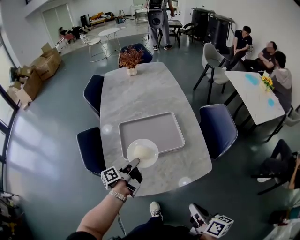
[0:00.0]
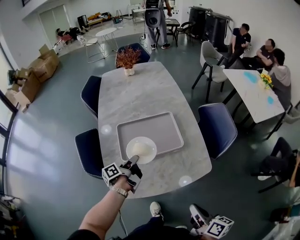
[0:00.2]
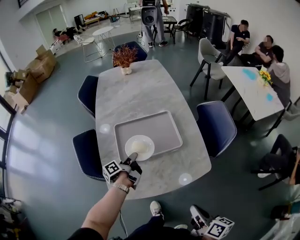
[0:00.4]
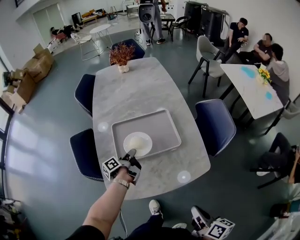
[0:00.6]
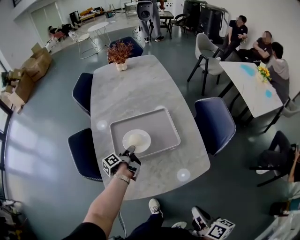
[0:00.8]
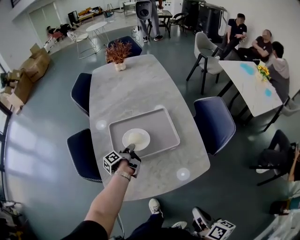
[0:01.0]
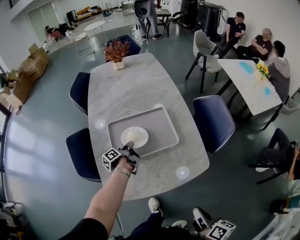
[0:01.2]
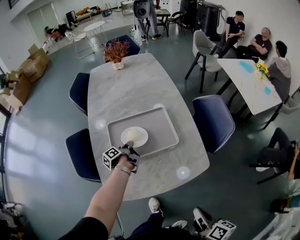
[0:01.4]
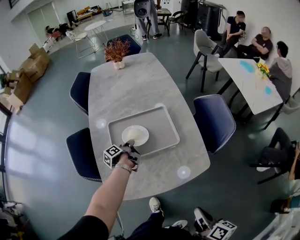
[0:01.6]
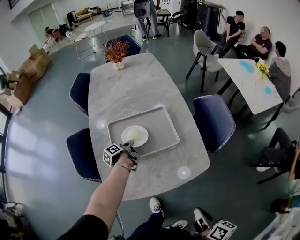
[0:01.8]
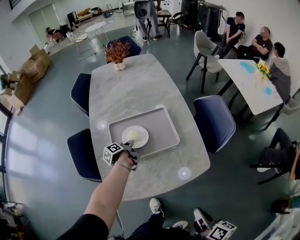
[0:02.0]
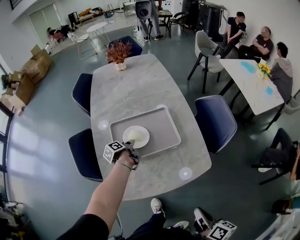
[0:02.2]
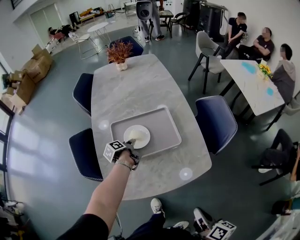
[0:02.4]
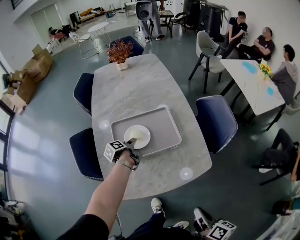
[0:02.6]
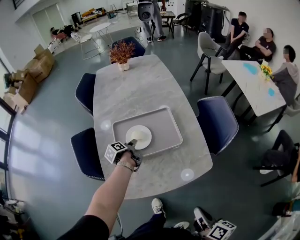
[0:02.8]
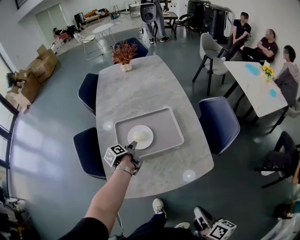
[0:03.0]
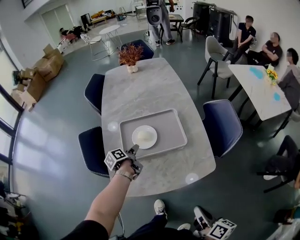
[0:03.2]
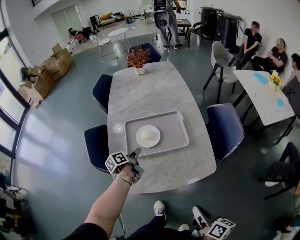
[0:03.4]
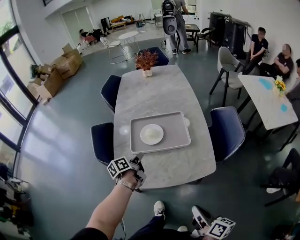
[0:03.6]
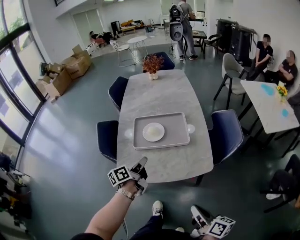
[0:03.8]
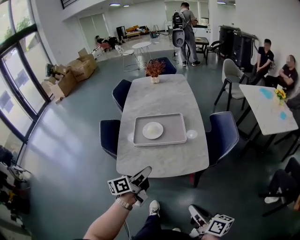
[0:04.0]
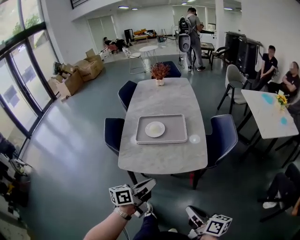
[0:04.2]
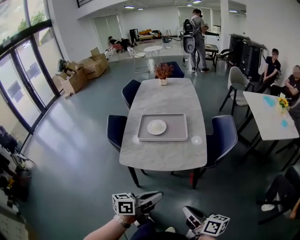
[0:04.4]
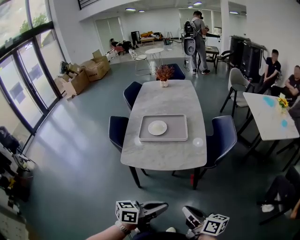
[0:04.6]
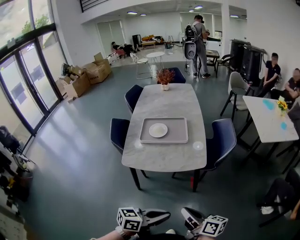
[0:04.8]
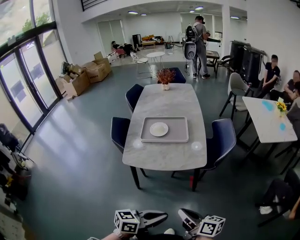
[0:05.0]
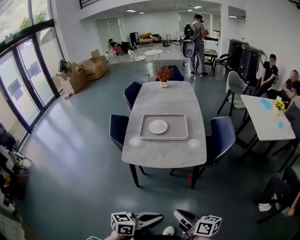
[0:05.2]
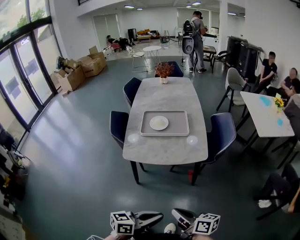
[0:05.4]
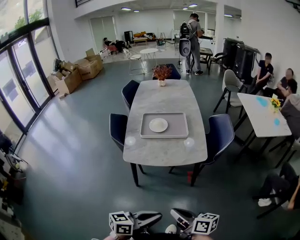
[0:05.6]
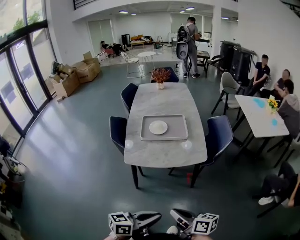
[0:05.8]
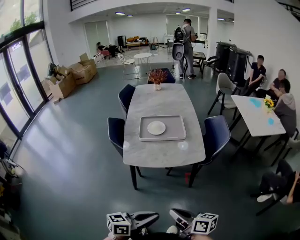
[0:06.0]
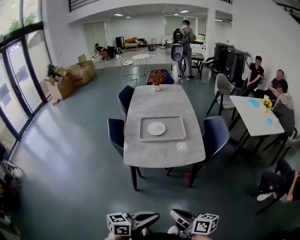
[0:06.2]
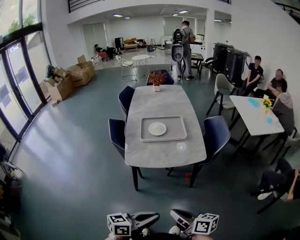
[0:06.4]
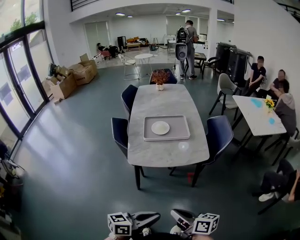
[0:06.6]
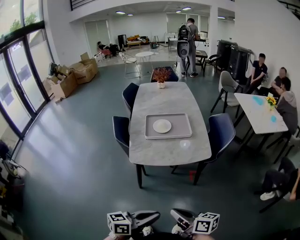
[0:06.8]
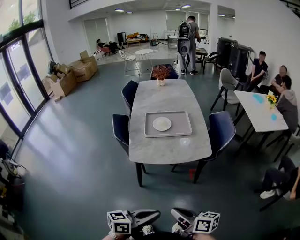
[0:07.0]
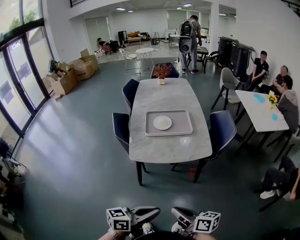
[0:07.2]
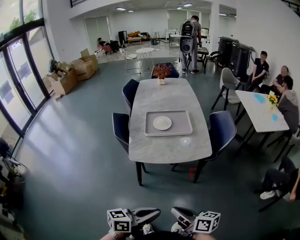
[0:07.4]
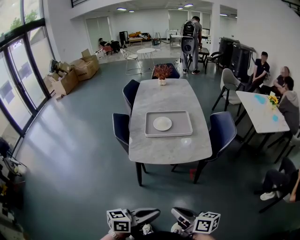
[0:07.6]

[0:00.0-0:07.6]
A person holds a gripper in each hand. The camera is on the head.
0:03.0 to 0:04.6: The right gripper changes place by some 20 cm, and changes its angle by about 40 degrees.
0:04.6 to 0:06.0: The right gripper shifts by roughly 15 cm.

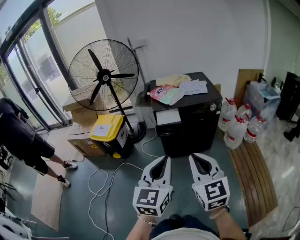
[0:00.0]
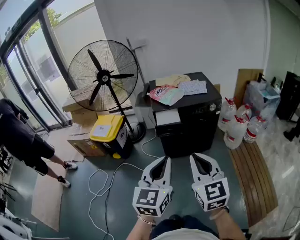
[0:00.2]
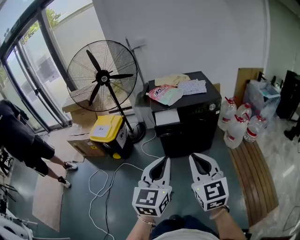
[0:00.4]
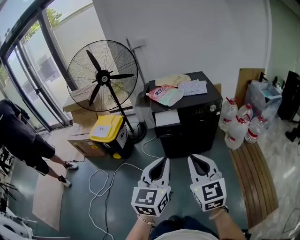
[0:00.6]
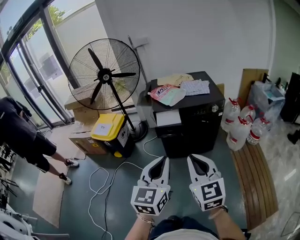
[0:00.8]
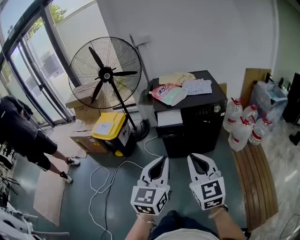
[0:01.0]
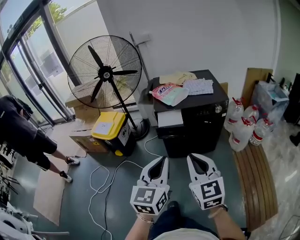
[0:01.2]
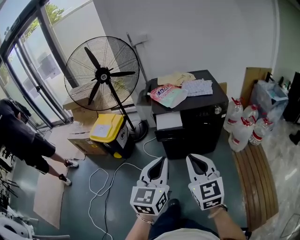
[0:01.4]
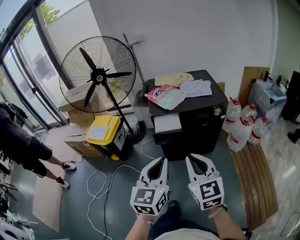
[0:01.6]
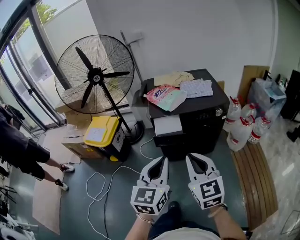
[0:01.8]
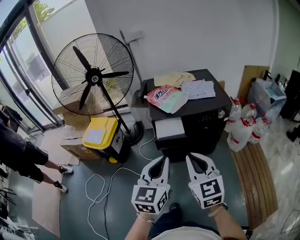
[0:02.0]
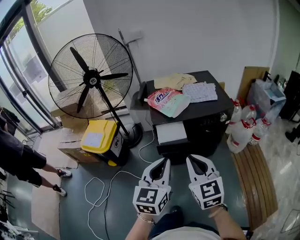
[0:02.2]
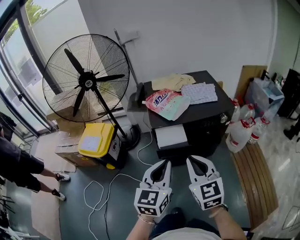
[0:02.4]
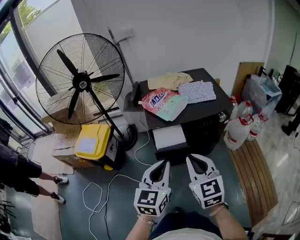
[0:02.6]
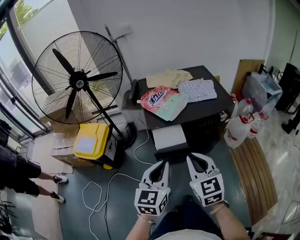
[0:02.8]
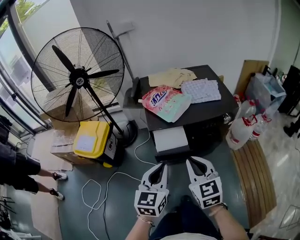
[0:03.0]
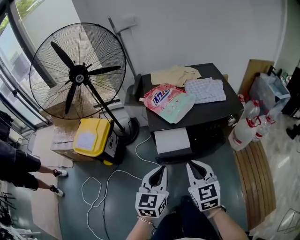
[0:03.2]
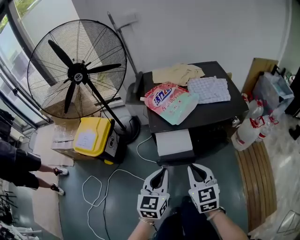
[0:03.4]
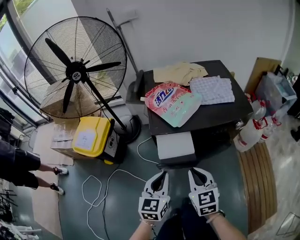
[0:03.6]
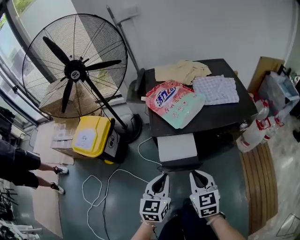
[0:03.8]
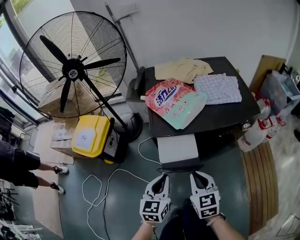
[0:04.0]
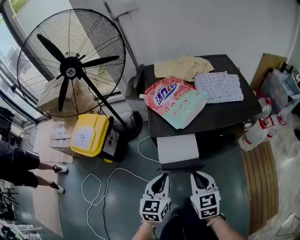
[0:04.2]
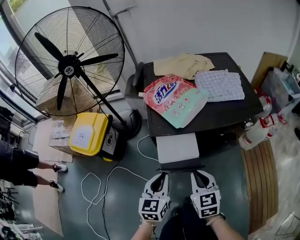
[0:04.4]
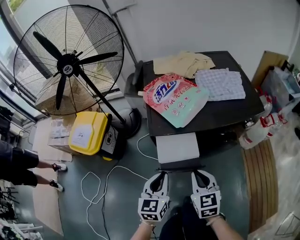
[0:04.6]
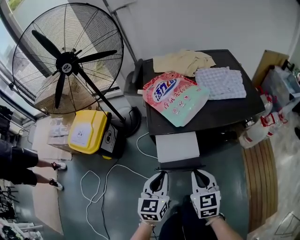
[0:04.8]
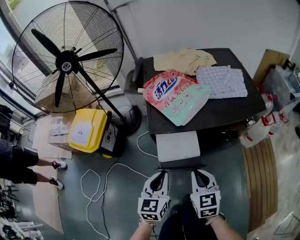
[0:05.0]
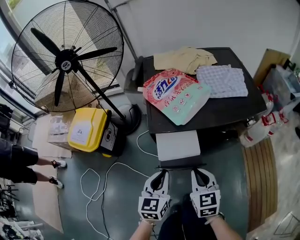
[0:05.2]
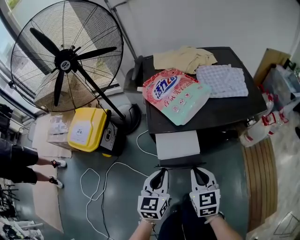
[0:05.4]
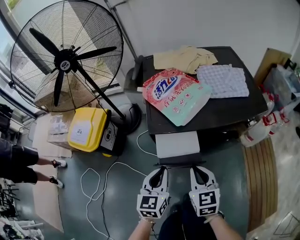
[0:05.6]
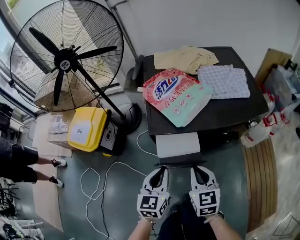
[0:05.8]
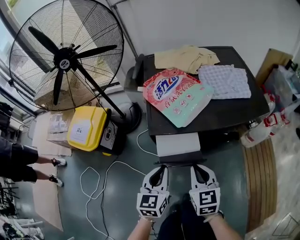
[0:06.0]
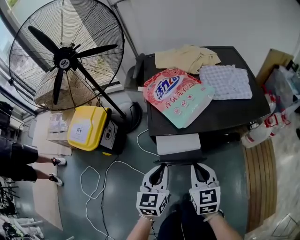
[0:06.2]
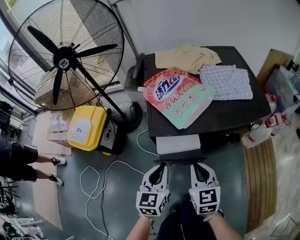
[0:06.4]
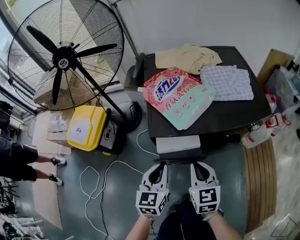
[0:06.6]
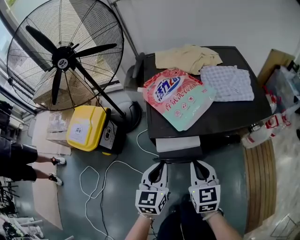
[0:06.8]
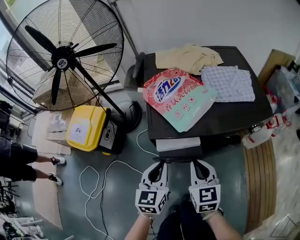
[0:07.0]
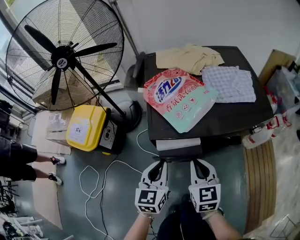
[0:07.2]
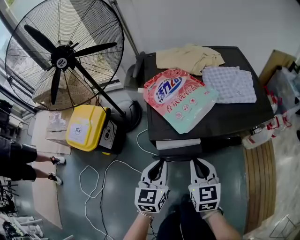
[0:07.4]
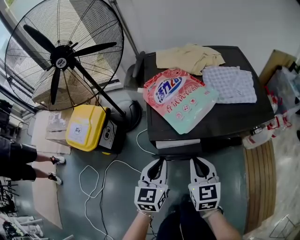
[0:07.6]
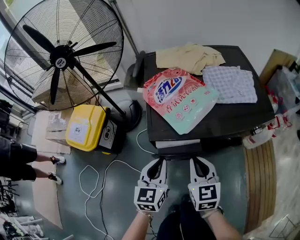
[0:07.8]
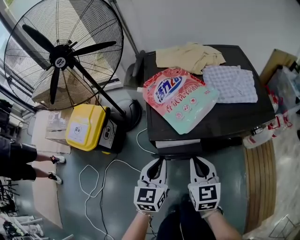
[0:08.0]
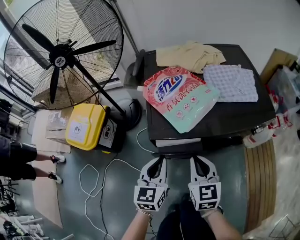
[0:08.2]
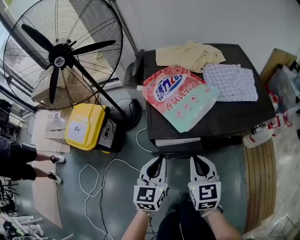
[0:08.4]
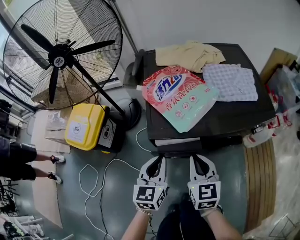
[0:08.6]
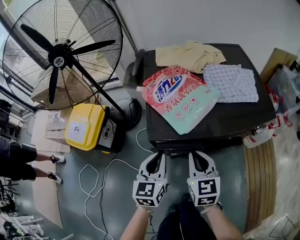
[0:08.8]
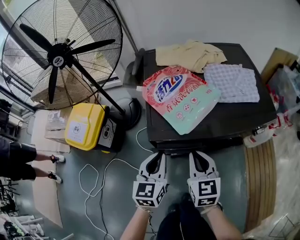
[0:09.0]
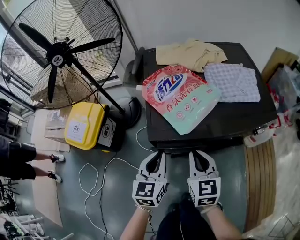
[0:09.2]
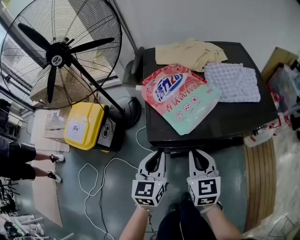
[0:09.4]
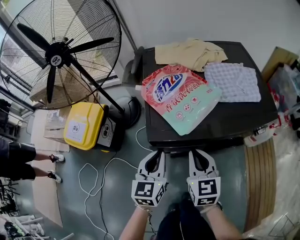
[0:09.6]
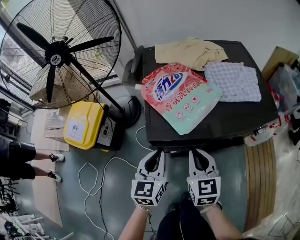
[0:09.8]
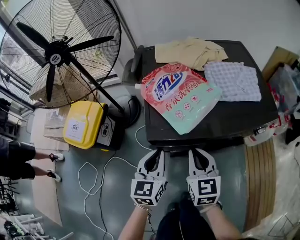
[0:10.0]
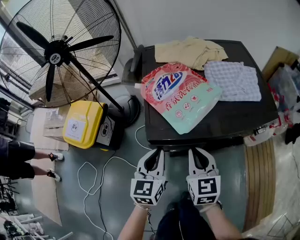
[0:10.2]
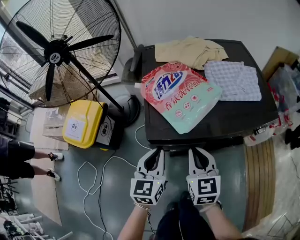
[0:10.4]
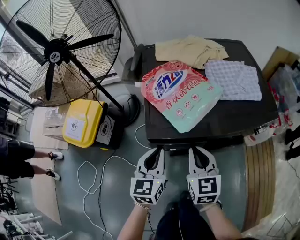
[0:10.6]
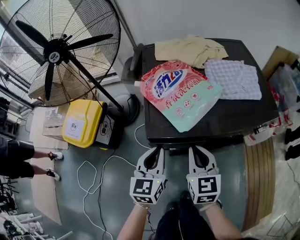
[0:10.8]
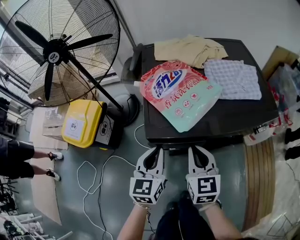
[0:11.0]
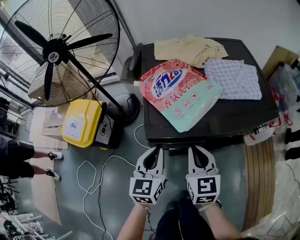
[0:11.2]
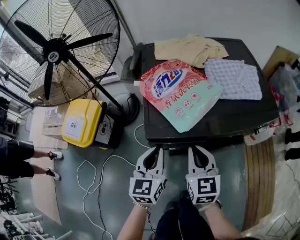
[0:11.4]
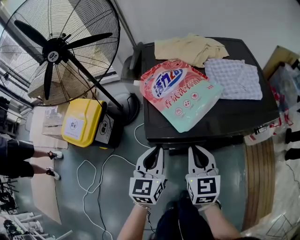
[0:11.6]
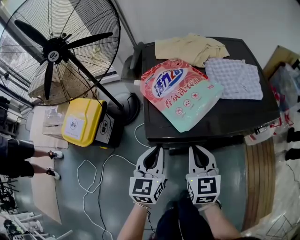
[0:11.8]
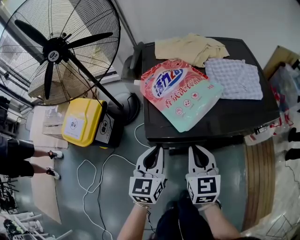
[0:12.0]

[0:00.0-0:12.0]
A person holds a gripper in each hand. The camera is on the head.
0:00.0 to 0:01.6: Both grippers move forward, some 10 cm.
0:01.6 to 0:03.0: The two grippers go roughly 20 cm forward and downward.
0:03.0 to 0:04.4: The right gripper heads downward, covering approximately 15 cm, while the left gripper goes some 20 cm downward and forward.
0:04.4 to 0:06.0: The grippers move only a little.
0:06.0 to 0:07.6: Both grippers travel together forward, roughly 5 cm.
0:07.6 to 0:09.0: The grippers stay close to where they were, moving slightly.
0:09.0 to 0:10.4: Both grippers stay put.
0:10.4 to 0:12.0: Neither gripper changes place.

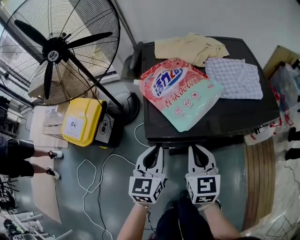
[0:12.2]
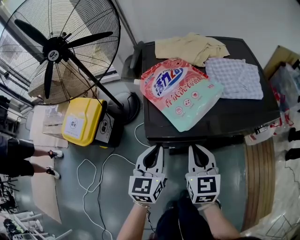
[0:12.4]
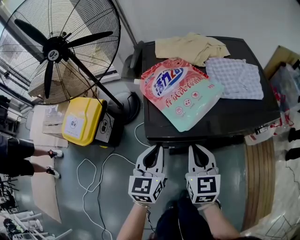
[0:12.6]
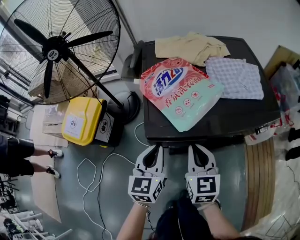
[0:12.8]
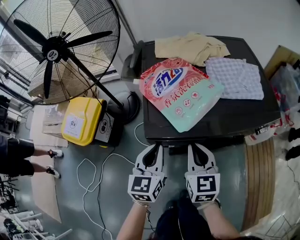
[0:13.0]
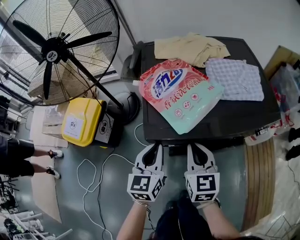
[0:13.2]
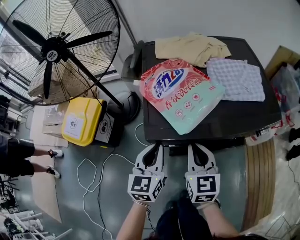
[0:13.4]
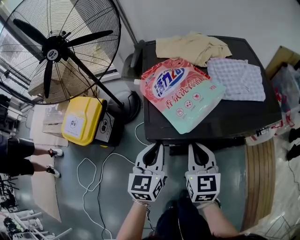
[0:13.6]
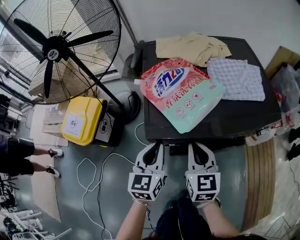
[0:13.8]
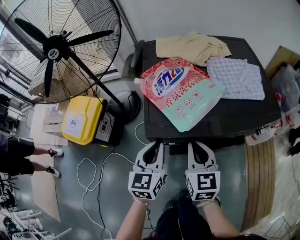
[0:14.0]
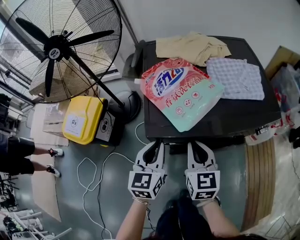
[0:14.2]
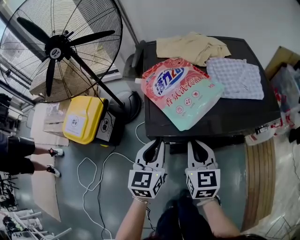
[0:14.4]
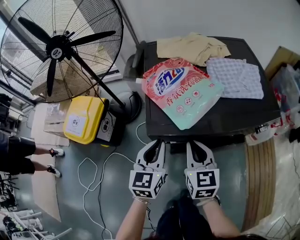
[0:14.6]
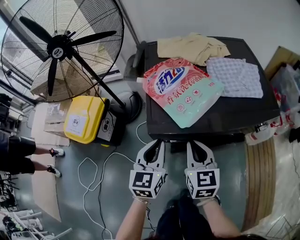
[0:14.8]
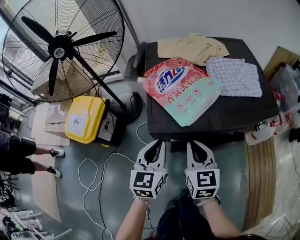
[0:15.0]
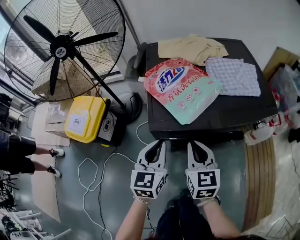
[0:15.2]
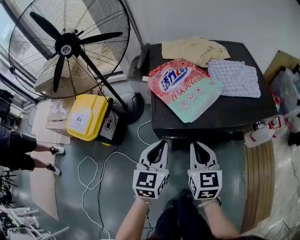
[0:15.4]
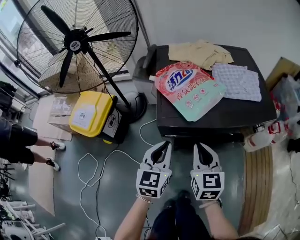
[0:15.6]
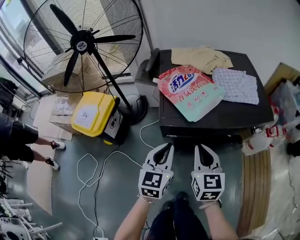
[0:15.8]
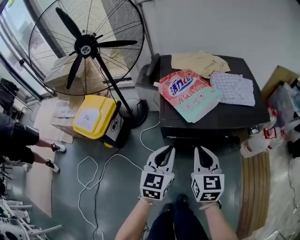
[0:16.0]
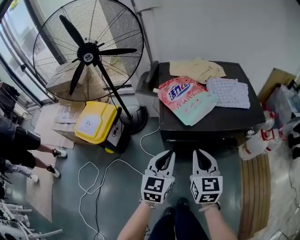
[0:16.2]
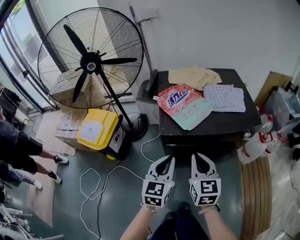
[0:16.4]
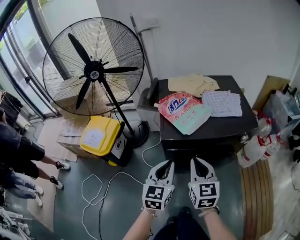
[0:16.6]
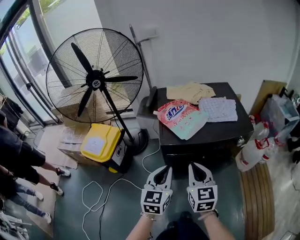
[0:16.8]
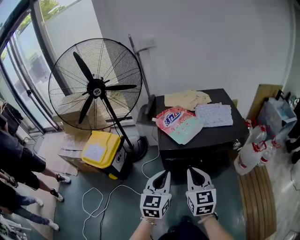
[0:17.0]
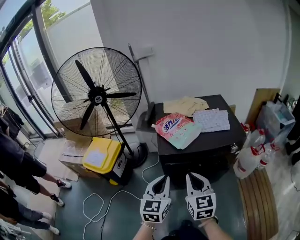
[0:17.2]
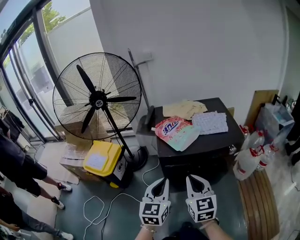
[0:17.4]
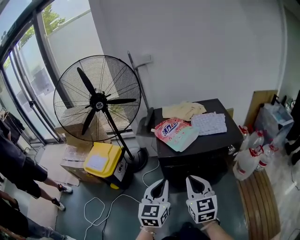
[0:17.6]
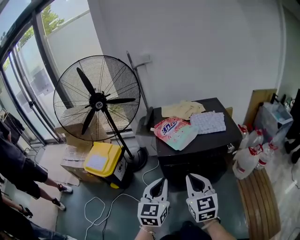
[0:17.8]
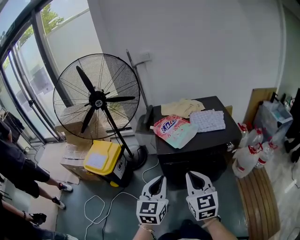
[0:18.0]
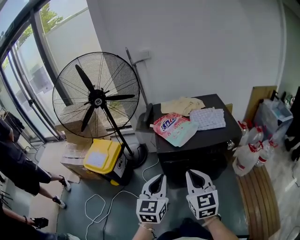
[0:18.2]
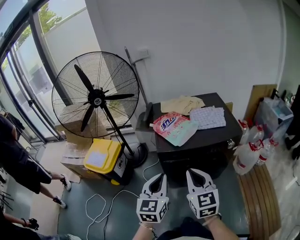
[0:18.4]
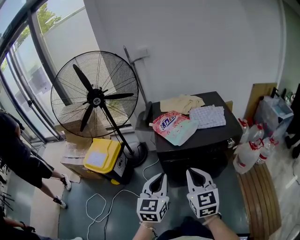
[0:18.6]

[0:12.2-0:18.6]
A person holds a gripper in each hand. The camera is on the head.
0:12.2 to 0:15.4: The grippers move only a little.
0:15.4 to 0:17.0: The right gripper travels upward and backward by about 20 cm. Meanwhile the left gripper moves backward and upward, about 15 cm.
0:17.0 to 0:18.6: The right gripper goes some 5 cm upward, while the left gripper shifts by roughly 5 cm.
